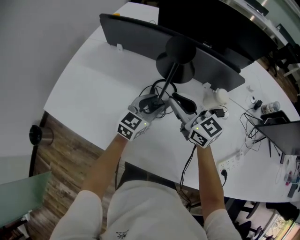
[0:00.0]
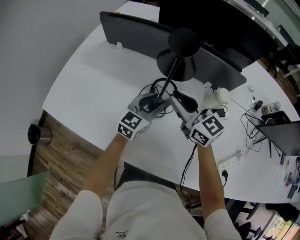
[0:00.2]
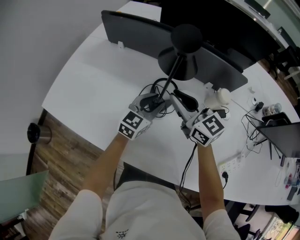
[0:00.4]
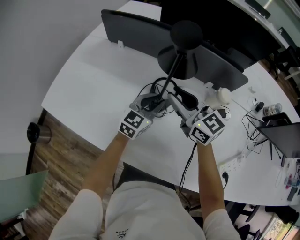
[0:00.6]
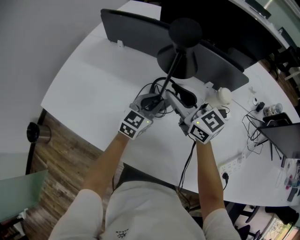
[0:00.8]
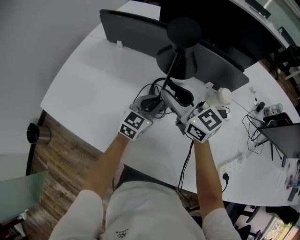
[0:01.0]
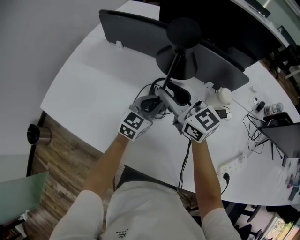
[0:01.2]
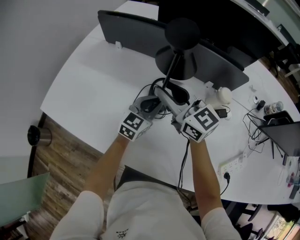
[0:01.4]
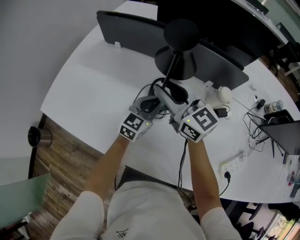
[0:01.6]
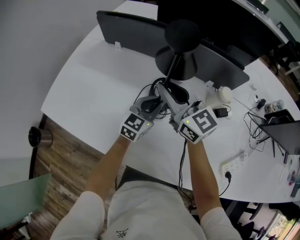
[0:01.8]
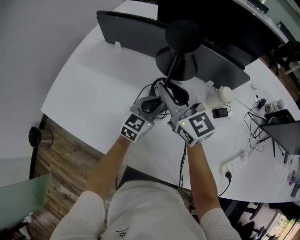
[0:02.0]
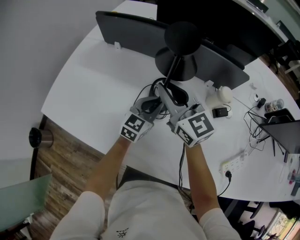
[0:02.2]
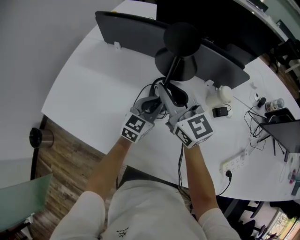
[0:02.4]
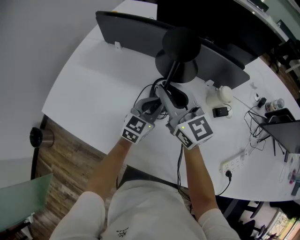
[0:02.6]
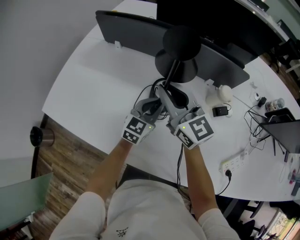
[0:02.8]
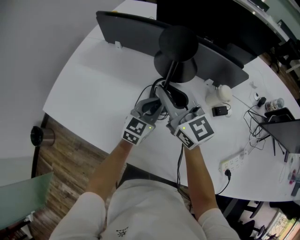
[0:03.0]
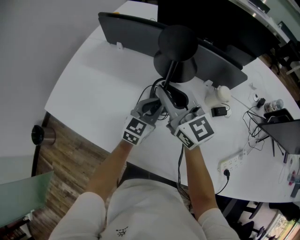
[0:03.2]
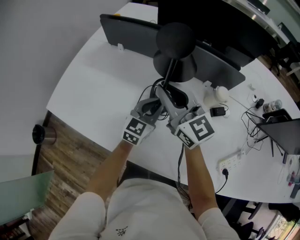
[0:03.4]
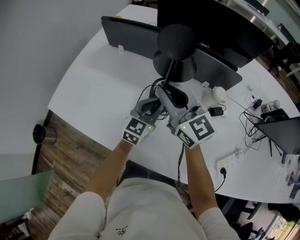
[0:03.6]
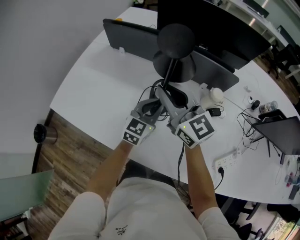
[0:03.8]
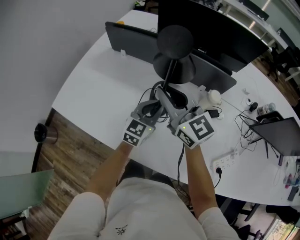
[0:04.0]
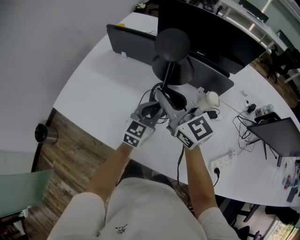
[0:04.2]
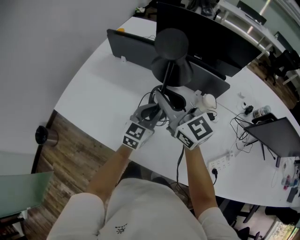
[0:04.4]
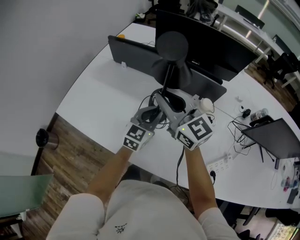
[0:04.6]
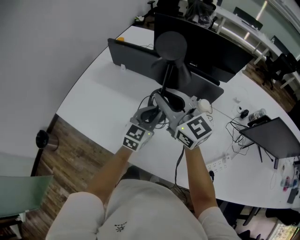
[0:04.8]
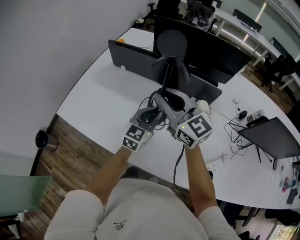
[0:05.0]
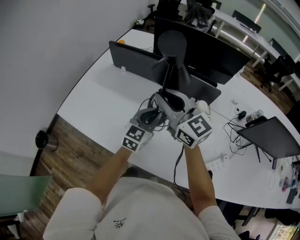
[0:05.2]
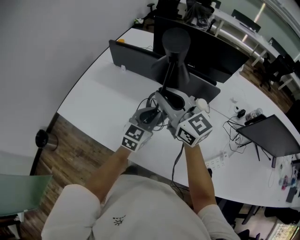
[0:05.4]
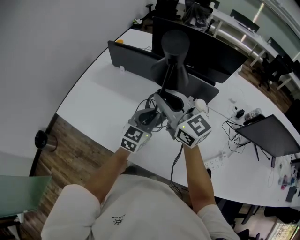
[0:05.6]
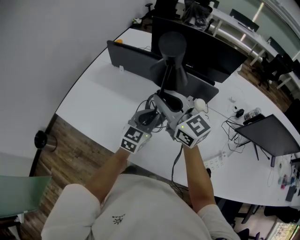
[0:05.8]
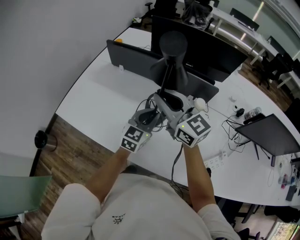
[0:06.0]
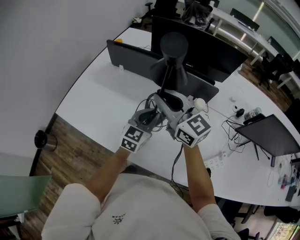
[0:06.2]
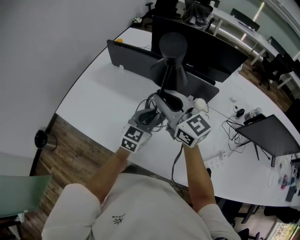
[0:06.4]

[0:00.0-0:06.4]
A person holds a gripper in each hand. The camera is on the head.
0:00.0 to 0:01.6: The right gripper shifts by roughly 5 cm. The left gripper closes its fingers.
0:01.6 to 0:03.2: The grippers make only small movements.
0:03.2 to 0:04.8: The right gripper moves upward and backward, about 15 cm. Meanwhile the left gripper moves upward, approximately 15 cm.
0:04.8 to 0:06.4: The grippers make only small movements.

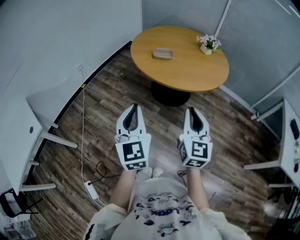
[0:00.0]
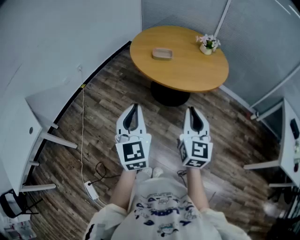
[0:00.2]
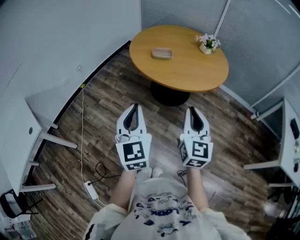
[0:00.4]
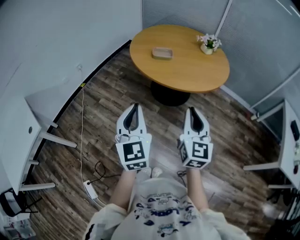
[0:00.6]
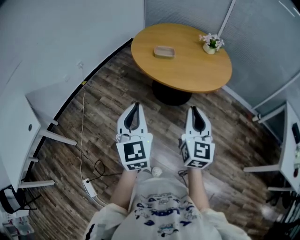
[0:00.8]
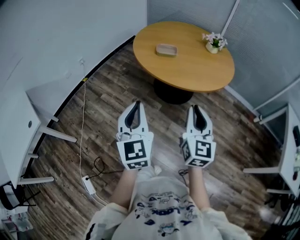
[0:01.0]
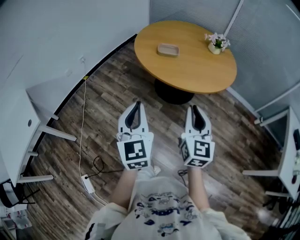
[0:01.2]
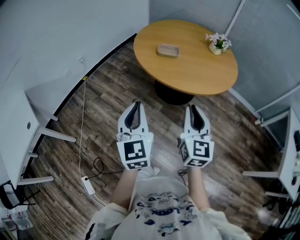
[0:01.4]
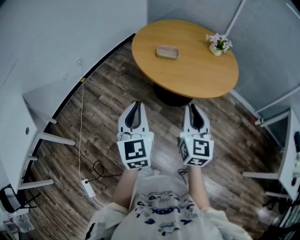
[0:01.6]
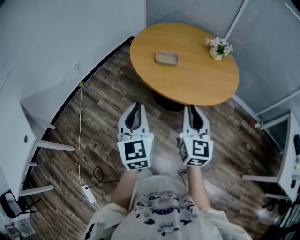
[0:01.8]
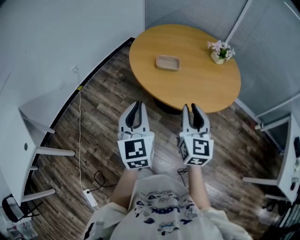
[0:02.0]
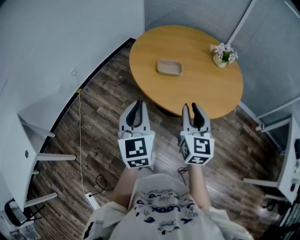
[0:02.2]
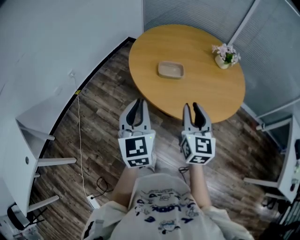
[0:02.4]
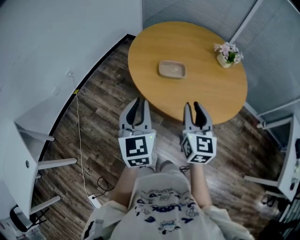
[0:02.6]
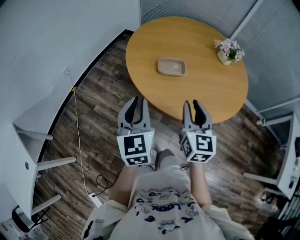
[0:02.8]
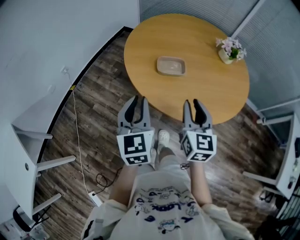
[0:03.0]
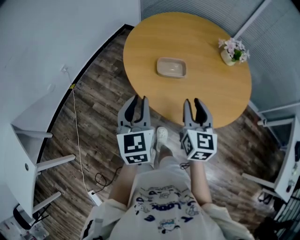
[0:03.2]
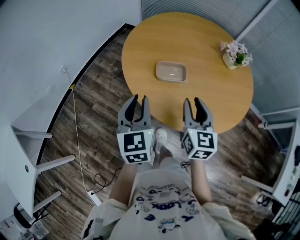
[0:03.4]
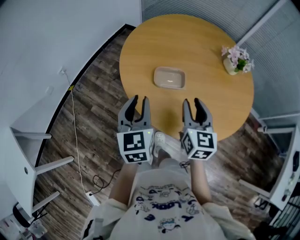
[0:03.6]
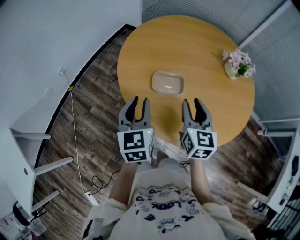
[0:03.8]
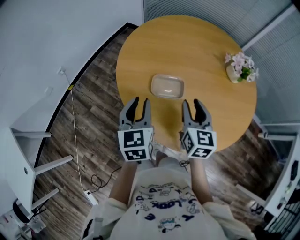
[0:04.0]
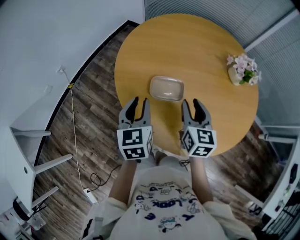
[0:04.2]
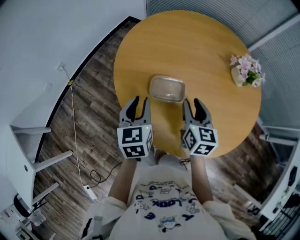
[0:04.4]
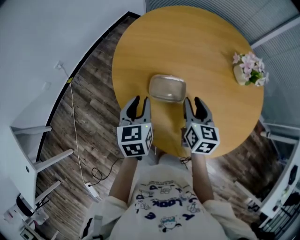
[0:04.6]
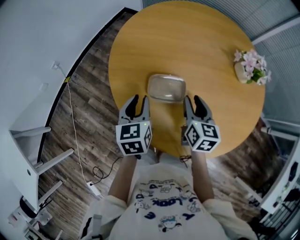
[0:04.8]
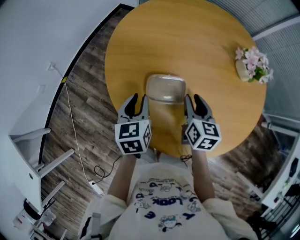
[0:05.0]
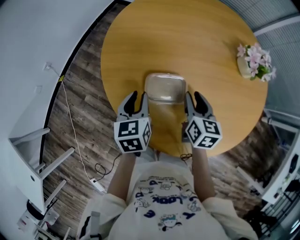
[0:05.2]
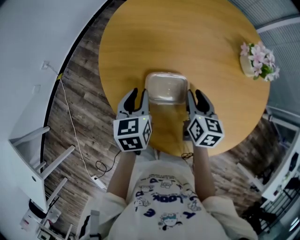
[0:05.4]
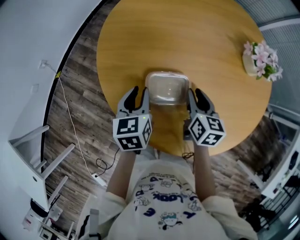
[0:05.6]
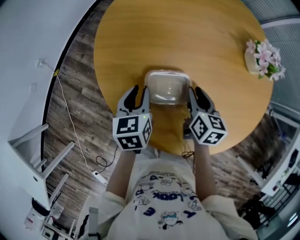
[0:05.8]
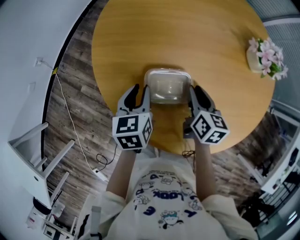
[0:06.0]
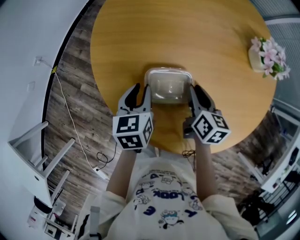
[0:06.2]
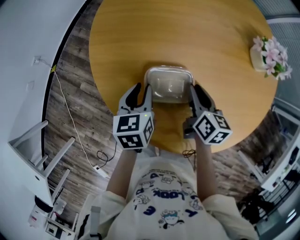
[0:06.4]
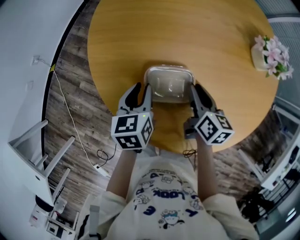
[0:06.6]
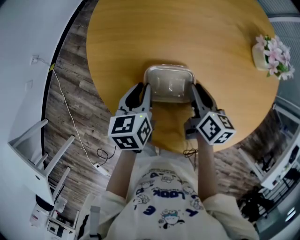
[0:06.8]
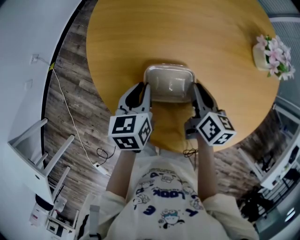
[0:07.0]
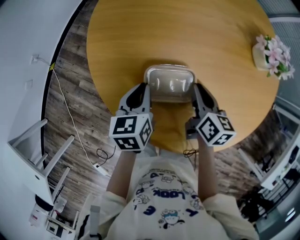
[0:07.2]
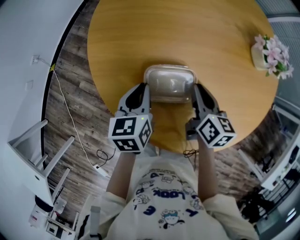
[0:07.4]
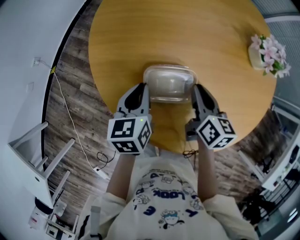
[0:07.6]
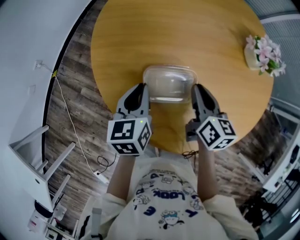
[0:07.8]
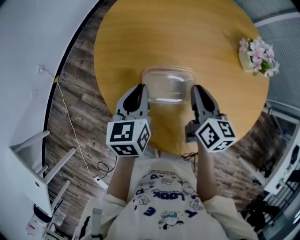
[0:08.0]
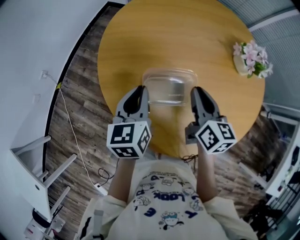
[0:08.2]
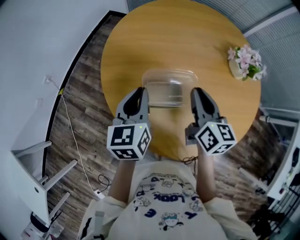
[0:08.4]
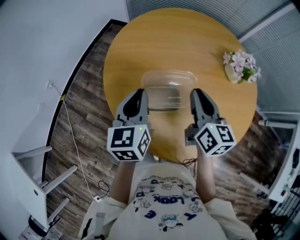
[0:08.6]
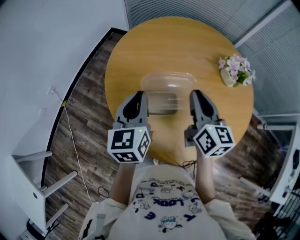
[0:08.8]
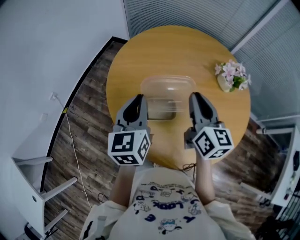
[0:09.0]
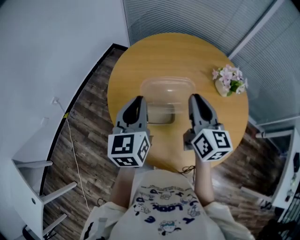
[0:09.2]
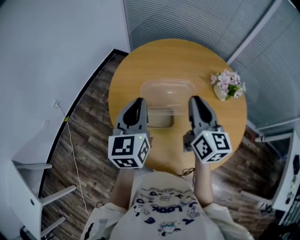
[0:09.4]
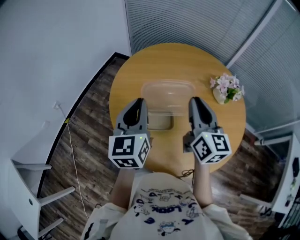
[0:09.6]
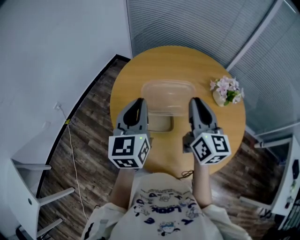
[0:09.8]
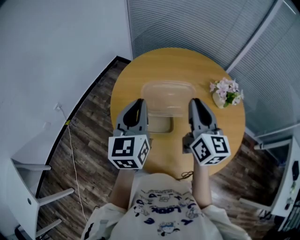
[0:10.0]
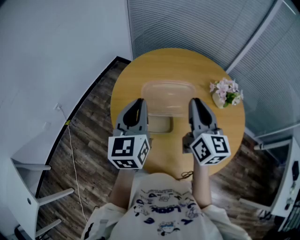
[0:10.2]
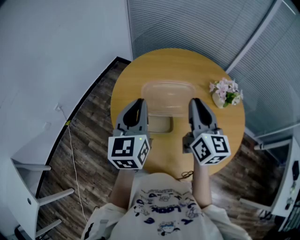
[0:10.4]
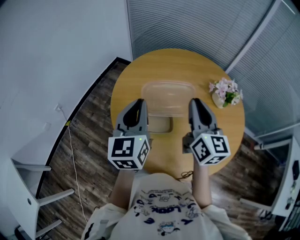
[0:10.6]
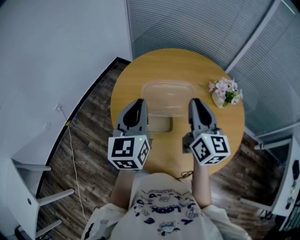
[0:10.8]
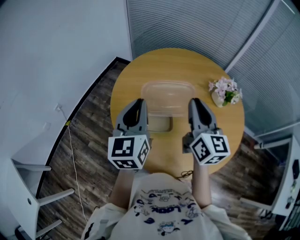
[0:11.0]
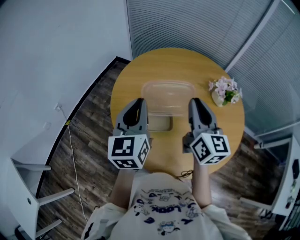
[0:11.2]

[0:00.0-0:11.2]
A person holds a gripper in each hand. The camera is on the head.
0:00.0 to 0:01.6: The two grippers go approximately 10 cm forward.
0:01.6 to 0:03.2: Both grippers travel together forward, some 30 cm.
0:03.2 to 0:04.8: The two grippers go some 25 cm forward and downward. The right gripper changes its angle by approximately 20 degrees, while the left gripper swivels some 20 degrees.
0:04.8 to 0:06.4: Both grippers move downward, about 10 cm.
0:06.4 to 0:08.0: The two grippers go about 10 cm upward.
0:08.0 to 0:09.6: The grippers both shift upward by about 20 cm. The left gripper turns by some 30 degrees, while the right gripper turns by some 30 degrees.
0:09.6 to 0:11.2: There are only small adjustments of the grippers.

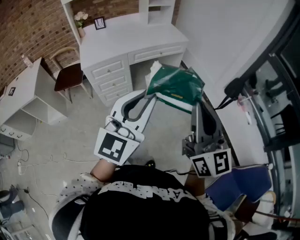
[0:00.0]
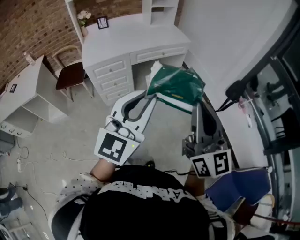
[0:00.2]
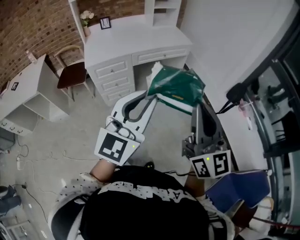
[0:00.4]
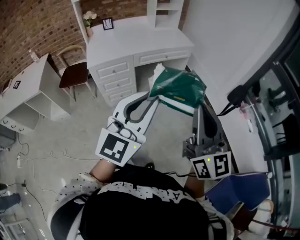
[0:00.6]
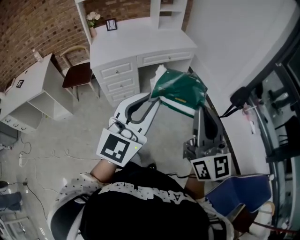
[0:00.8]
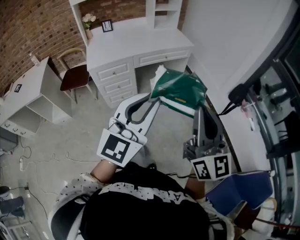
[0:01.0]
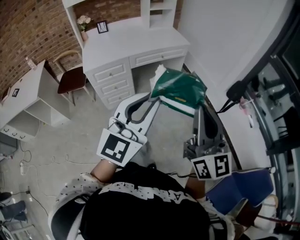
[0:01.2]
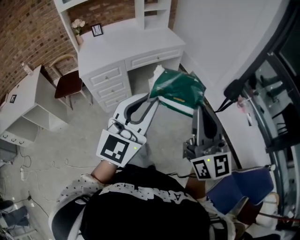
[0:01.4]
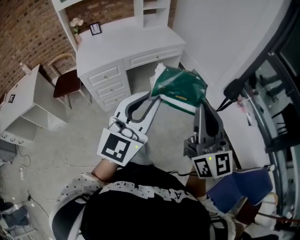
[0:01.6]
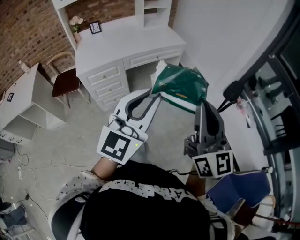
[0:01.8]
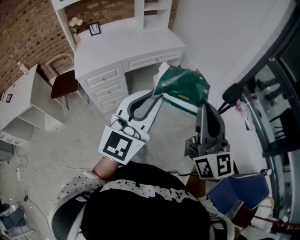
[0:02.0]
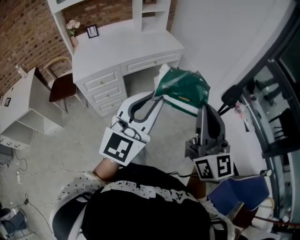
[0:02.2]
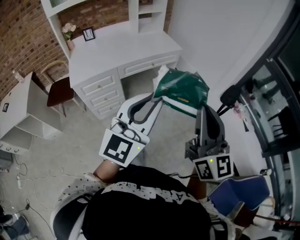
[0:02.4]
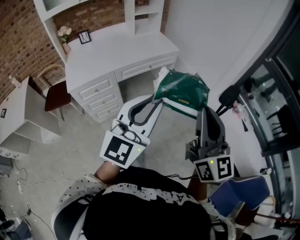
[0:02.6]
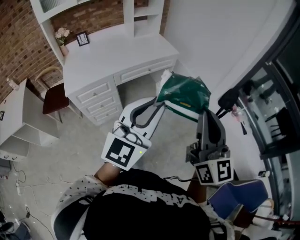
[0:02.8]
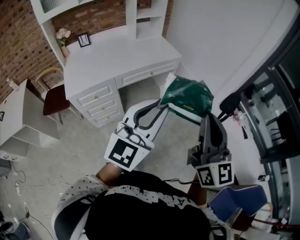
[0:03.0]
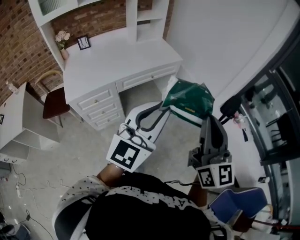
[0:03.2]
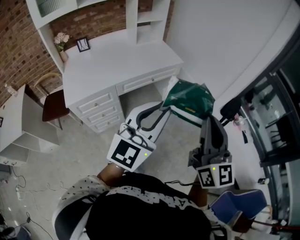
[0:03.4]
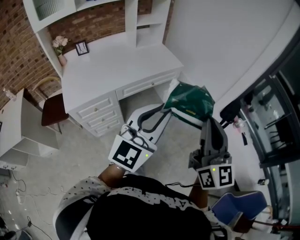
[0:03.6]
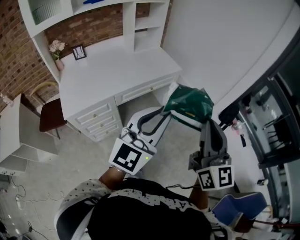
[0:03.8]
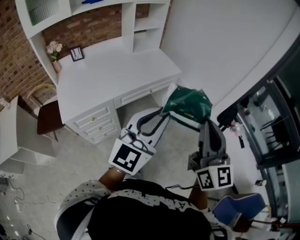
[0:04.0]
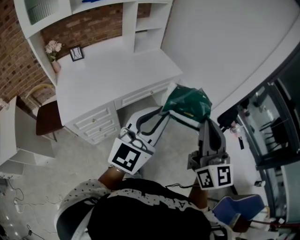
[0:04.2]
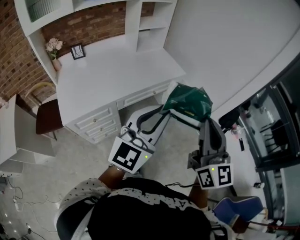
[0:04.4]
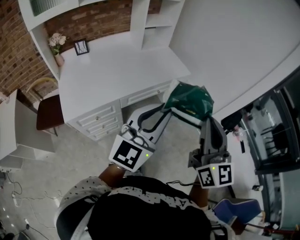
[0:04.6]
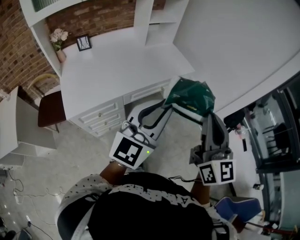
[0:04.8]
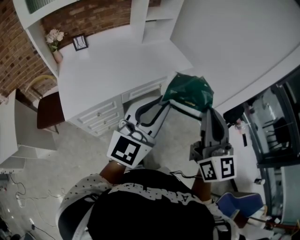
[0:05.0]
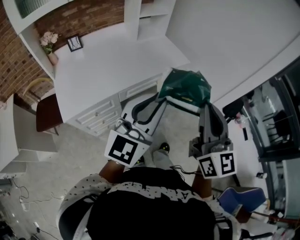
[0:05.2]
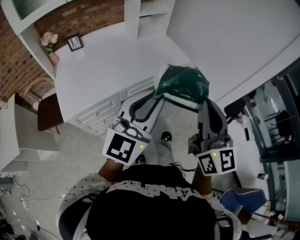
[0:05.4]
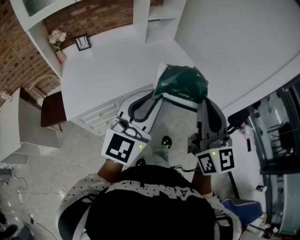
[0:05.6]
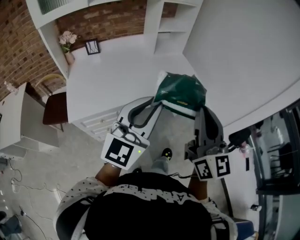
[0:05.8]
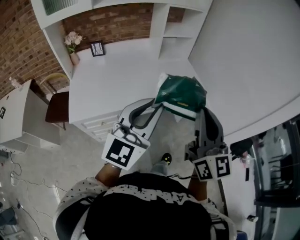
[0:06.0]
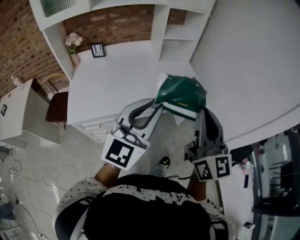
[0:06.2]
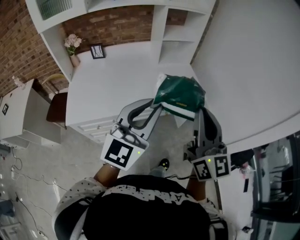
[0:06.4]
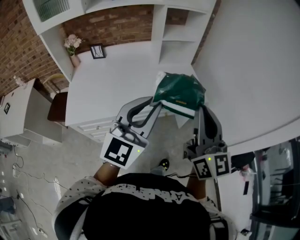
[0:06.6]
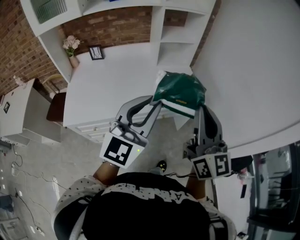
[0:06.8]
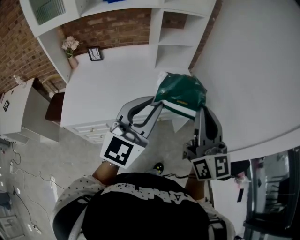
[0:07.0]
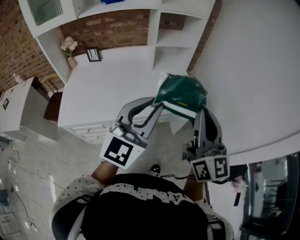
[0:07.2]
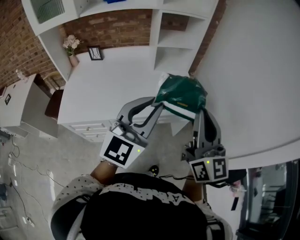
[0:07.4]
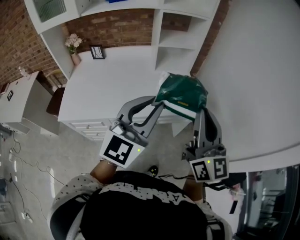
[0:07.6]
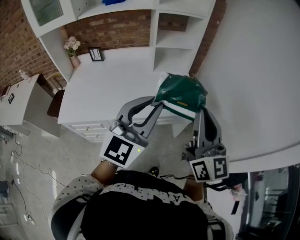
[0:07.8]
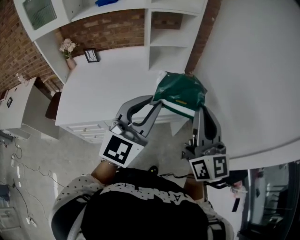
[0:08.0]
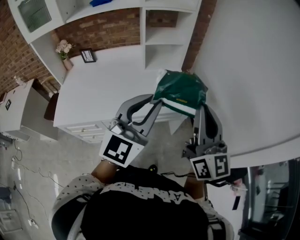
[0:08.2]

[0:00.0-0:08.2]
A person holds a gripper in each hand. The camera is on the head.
0:00.0 to 0:01.6: The left gripper ends up approximately 5 cm from where it was.
0:01.6 to 0:03.2: The two grippers go some 15 cm forward.
0:03.2 to 0:05.0: Both grippers travel together to the left and forward, roughly 20 cm.
0:05.0 to 0:06.6: The grippers both shift forward by some 20 cm. The left gripper swivels some 20 degrees, while the right gripper swivels approximately 20 degrees.
0:06.6 to 0:08.2: Both grippers travel together to the right and forward, some 15 cm.
